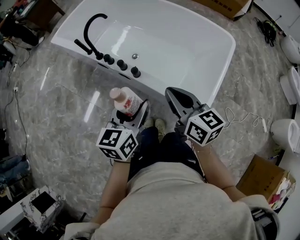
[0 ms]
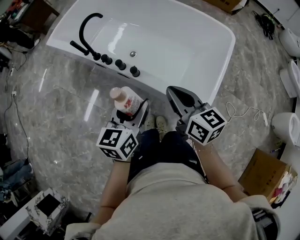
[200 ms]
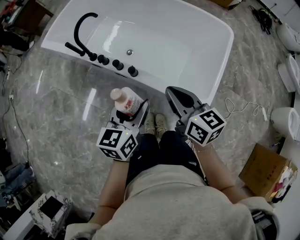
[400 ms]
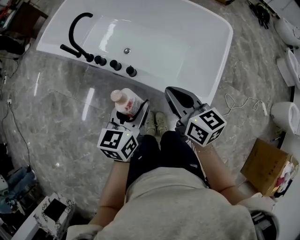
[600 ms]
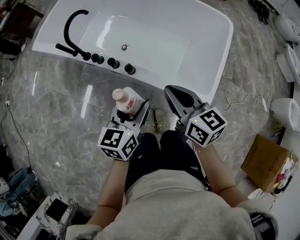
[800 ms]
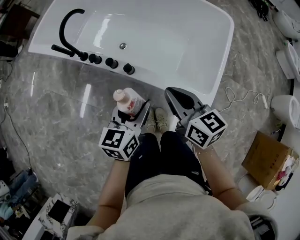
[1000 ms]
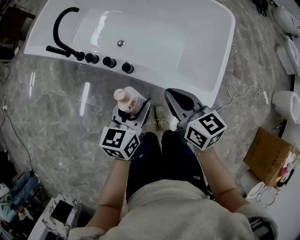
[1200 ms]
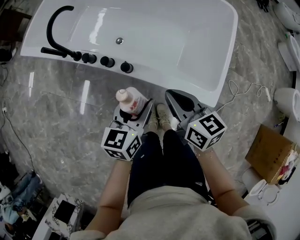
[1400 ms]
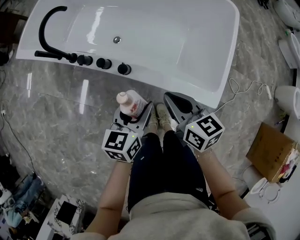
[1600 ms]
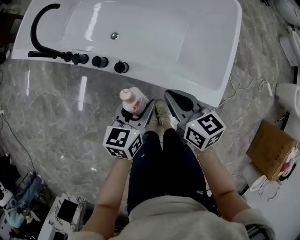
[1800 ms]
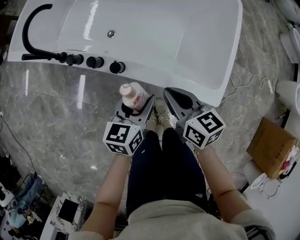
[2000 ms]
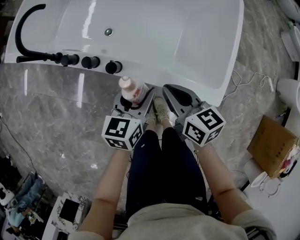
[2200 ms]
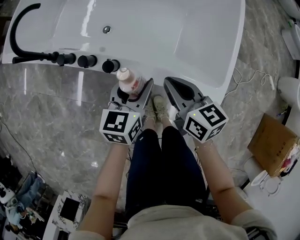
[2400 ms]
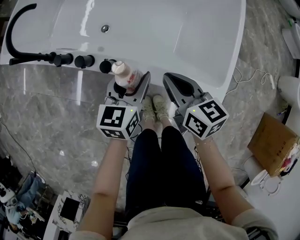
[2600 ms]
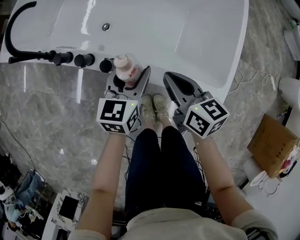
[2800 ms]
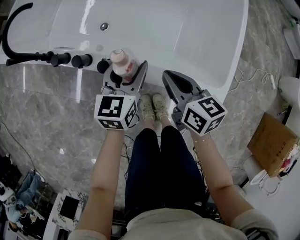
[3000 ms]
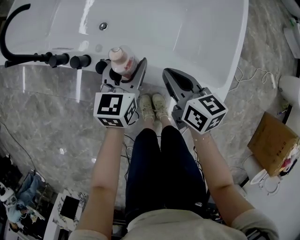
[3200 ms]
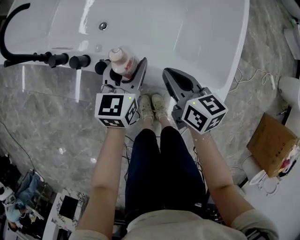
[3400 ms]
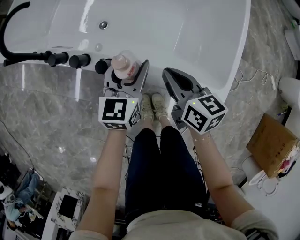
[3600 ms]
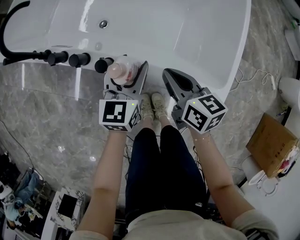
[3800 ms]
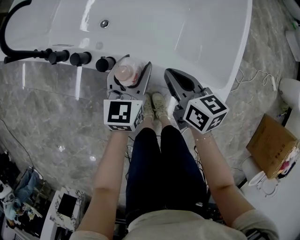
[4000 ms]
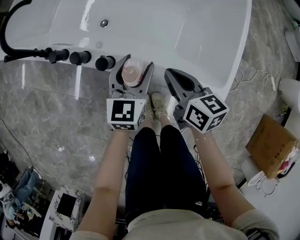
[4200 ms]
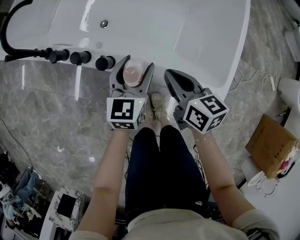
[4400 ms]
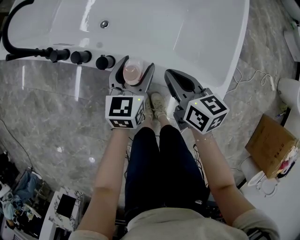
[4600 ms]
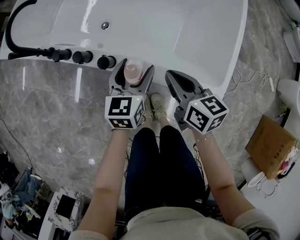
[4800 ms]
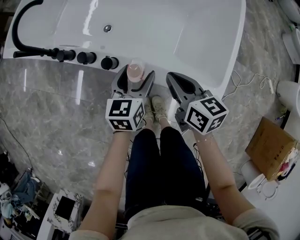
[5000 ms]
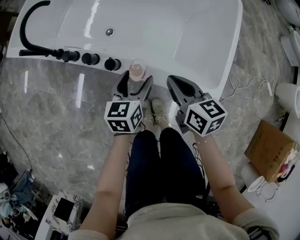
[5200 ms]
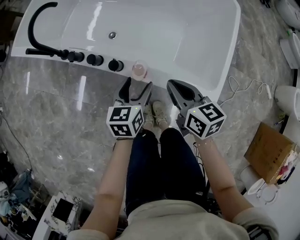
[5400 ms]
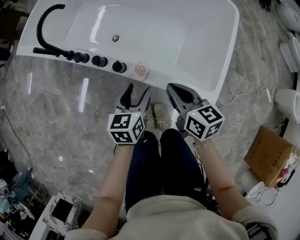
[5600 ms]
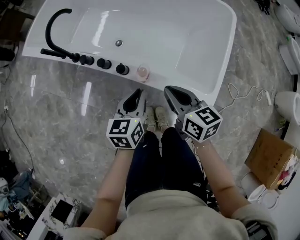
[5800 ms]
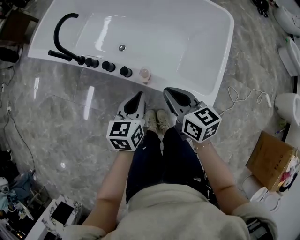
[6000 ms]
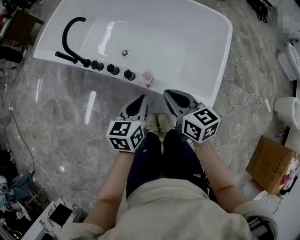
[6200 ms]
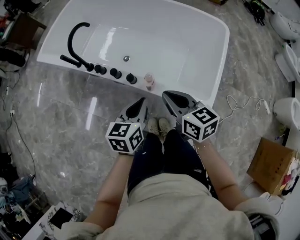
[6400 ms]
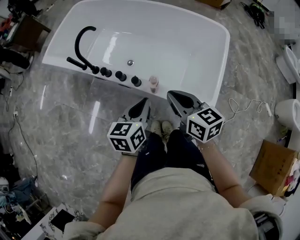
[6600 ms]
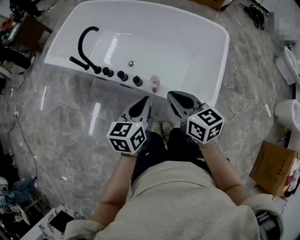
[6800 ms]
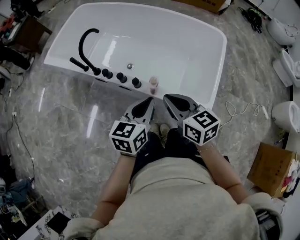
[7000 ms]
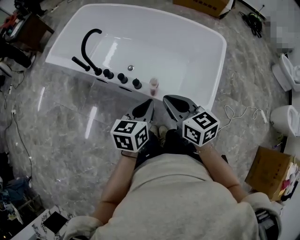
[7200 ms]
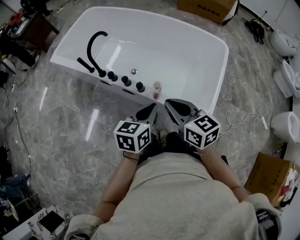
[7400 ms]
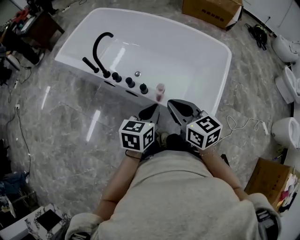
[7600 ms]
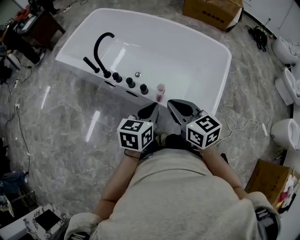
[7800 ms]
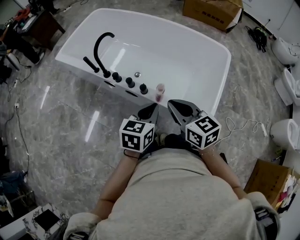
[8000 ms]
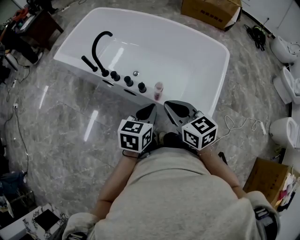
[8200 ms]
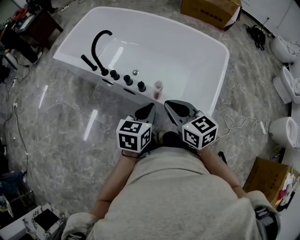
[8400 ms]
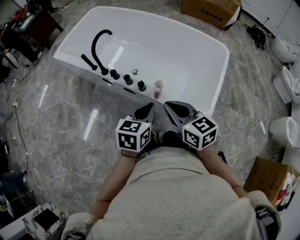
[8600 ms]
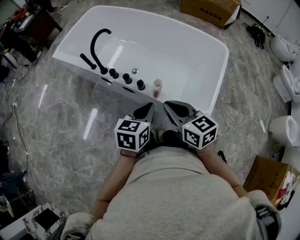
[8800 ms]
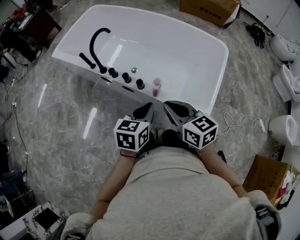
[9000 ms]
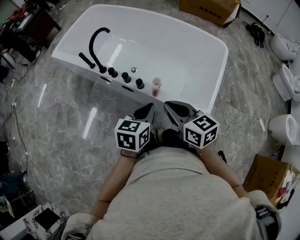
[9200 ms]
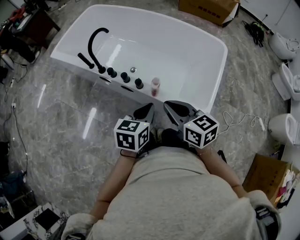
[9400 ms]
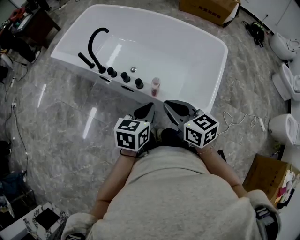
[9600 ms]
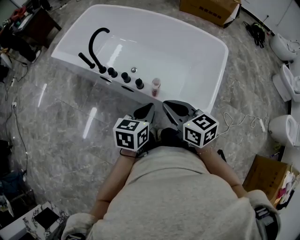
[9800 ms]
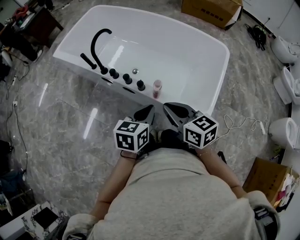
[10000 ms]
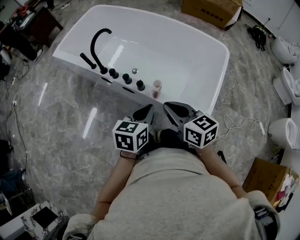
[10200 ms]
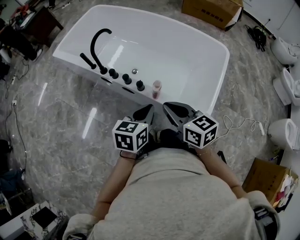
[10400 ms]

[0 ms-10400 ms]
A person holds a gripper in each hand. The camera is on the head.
0 ms to 1400 ms: The left gripper moves downward and forward, about 15 cm. The right gripper moves downward, roughly 15 cm.
1400 ms to 3000 ms: The grippers both shift downward and forward by approximately 15 cm.
3000 ms to 4400 ms: The grippers make only small movements.
4400 ms to 6000 ms: The right gripper is displaced upward by approximately 15 cm. Meanwhile the left gripper goes about 20 cm upward and backward, and closes up.
6000 ms to 7400 ms: The grippers both shift upward by about 10 cm.
7400 ms to 9000 ms: The grippers move only a little.
9000 ms to 10400 ms: The two grippers keep their place.

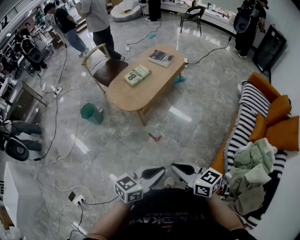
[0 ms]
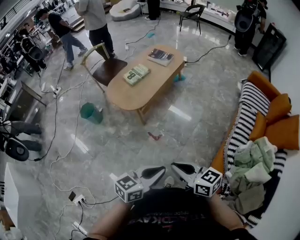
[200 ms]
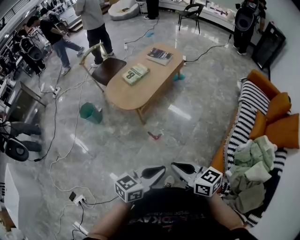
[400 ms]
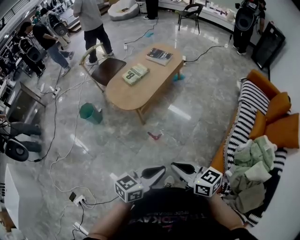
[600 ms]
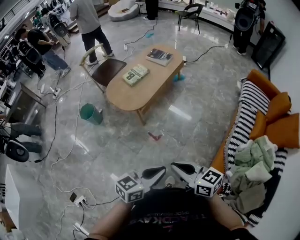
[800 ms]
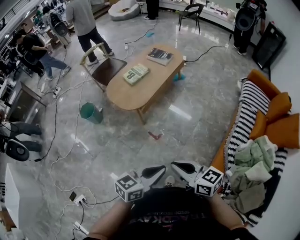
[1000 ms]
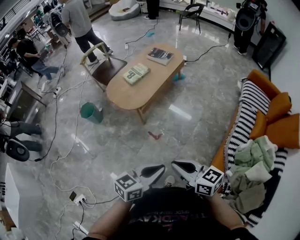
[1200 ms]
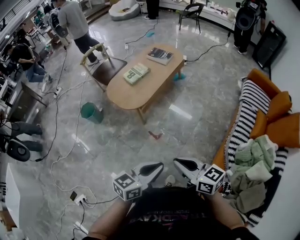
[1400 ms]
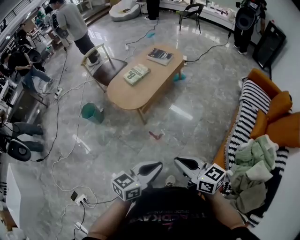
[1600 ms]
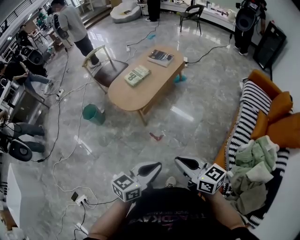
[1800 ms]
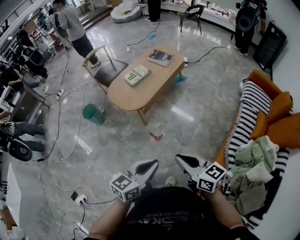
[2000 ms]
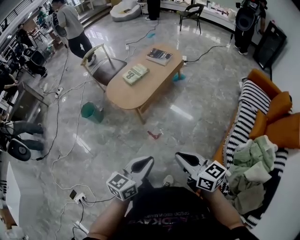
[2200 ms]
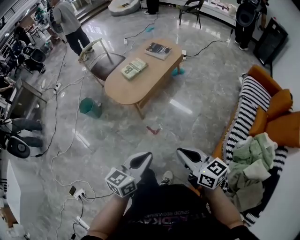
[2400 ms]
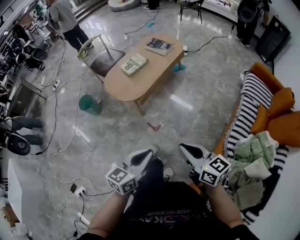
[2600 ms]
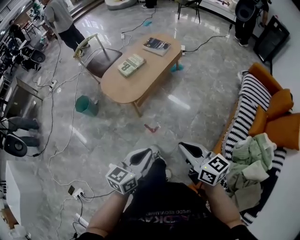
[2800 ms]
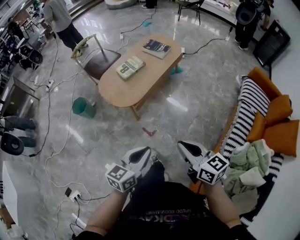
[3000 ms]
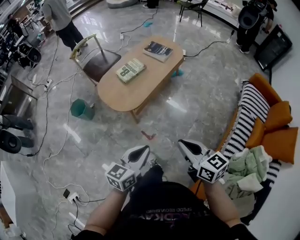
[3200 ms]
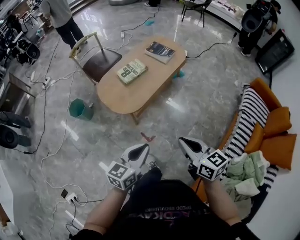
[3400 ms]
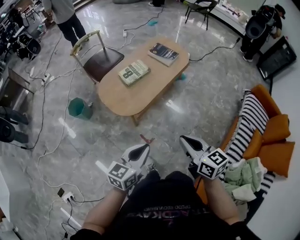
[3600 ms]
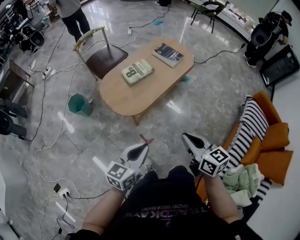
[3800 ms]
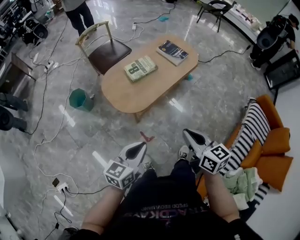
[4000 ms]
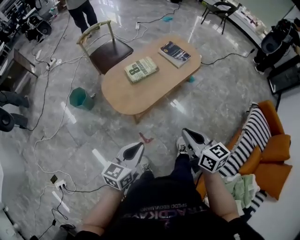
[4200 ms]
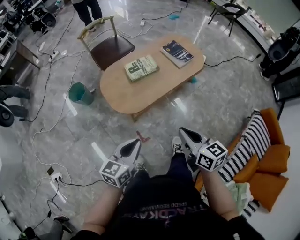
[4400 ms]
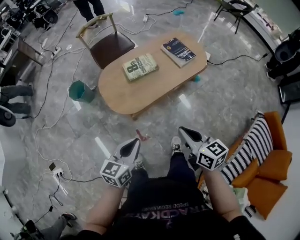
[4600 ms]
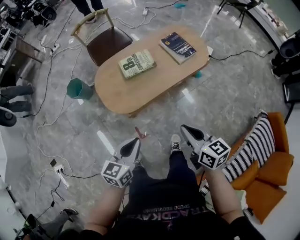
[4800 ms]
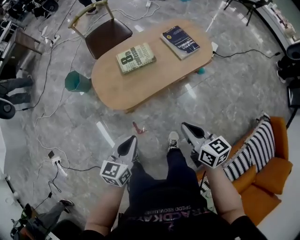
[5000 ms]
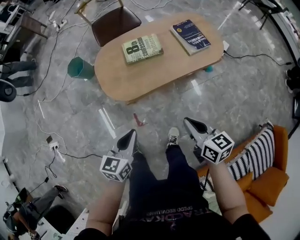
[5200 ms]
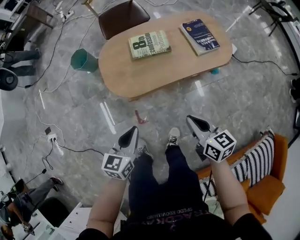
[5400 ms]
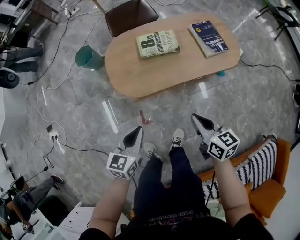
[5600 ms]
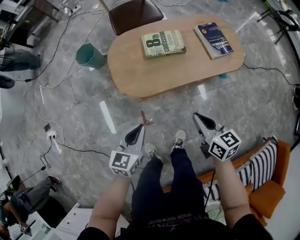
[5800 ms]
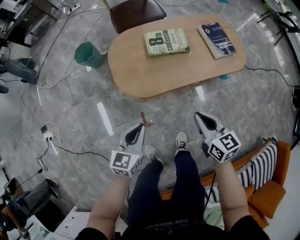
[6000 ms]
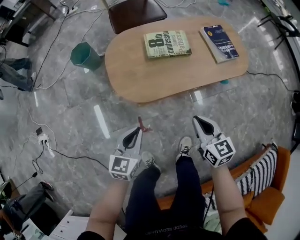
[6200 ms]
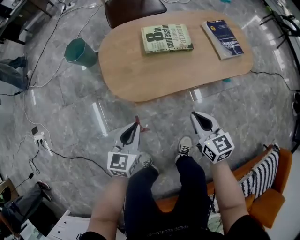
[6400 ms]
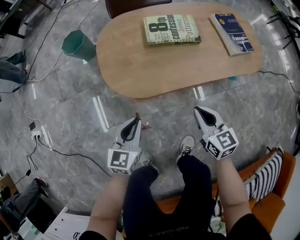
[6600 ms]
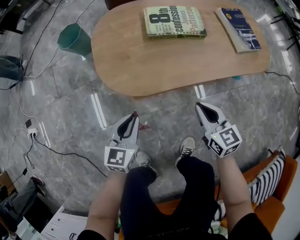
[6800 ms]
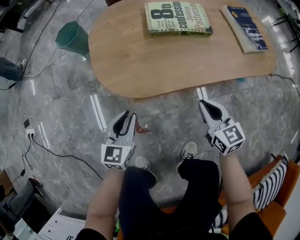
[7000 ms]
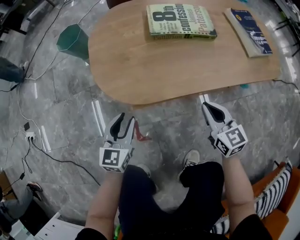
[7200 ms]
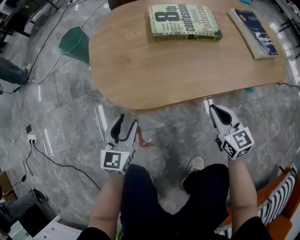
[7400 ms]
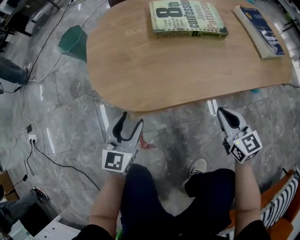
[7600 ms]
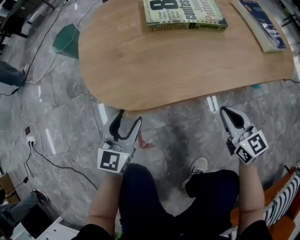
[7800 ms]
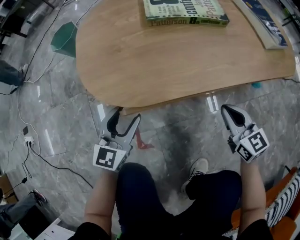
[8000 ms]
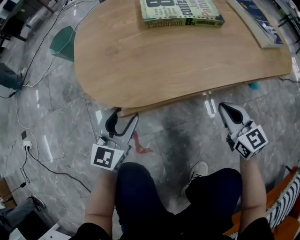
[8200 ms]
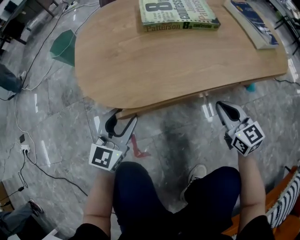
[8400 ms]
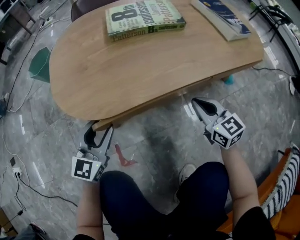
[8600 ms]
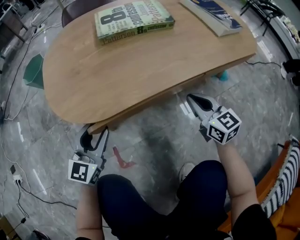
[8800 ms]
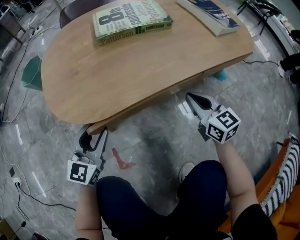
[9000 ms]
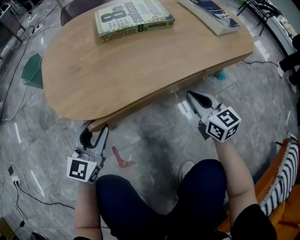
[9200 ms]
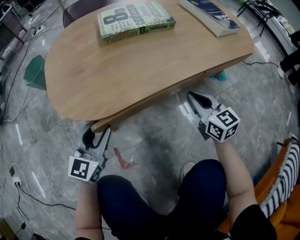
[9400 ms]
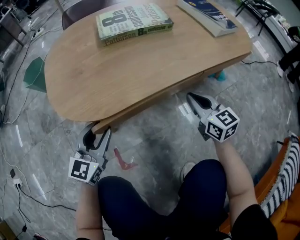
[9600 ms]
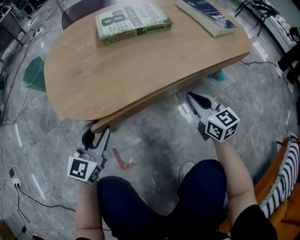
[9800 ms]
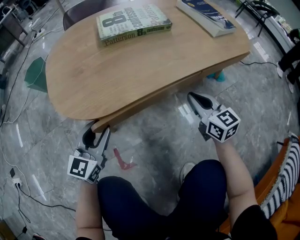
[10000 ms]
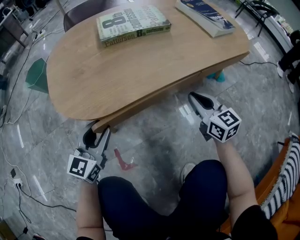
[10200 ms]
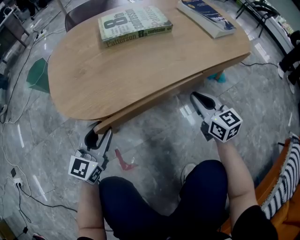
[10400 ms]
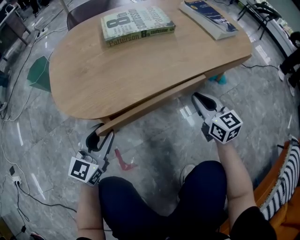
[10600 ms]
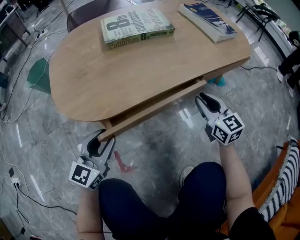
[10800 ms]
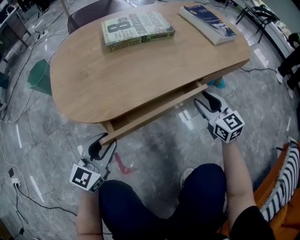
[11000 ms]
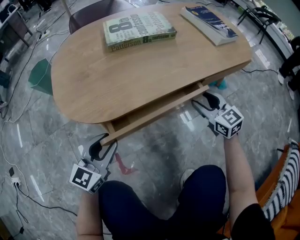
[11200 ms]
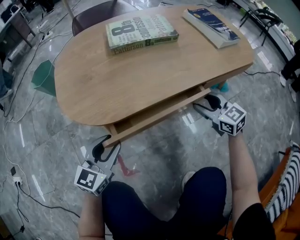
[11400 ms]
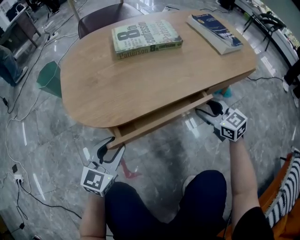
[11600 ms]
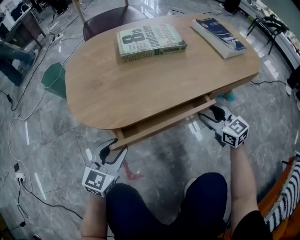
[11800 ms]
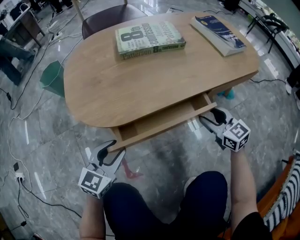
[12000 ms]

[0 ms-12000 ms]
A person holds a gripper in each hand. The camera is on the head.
0 ms to 1600 ms: The grippers move only a little.
1600 ms to 3000 ms: The grippers both shift forward by approximately 15 cm.
3000 ms to 4400 ms: Both grippers travel together forward, roughly 25 cm. The left gripper swivels about 20 degrees.
4400 ms to 6000 ms: The grippers both shift downward and forward by about 25 cm. The left gripper turns by roughly 20 degrees.
6000 ms to 7600 ms: The grippers both shift downward by about 35 cm. The left gripper opens.
7600 ms to 10400 ms: The grippers stay close to where they were, moving slightly.
10400 ms to 12000 ms: The right gripper opens its fingers.

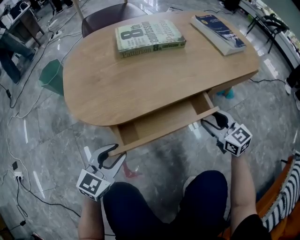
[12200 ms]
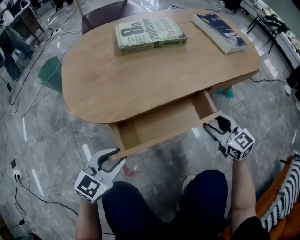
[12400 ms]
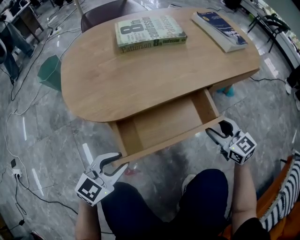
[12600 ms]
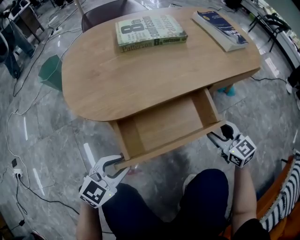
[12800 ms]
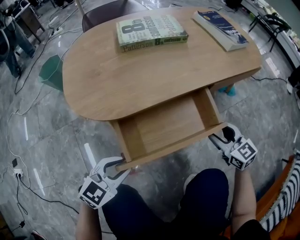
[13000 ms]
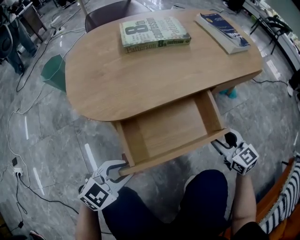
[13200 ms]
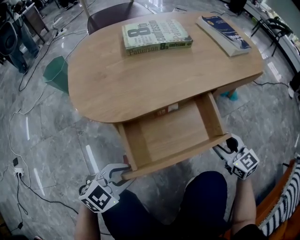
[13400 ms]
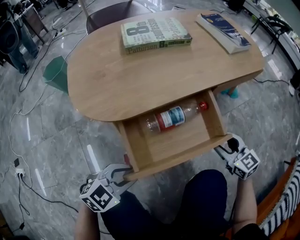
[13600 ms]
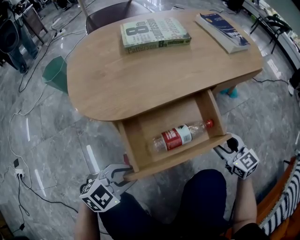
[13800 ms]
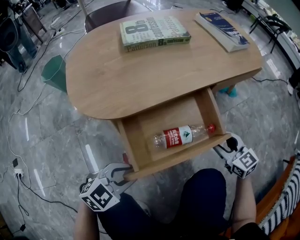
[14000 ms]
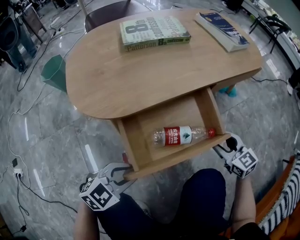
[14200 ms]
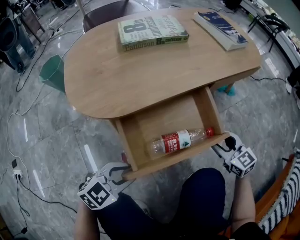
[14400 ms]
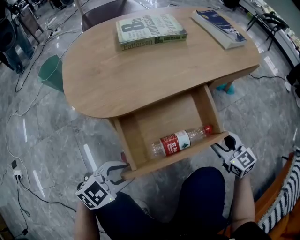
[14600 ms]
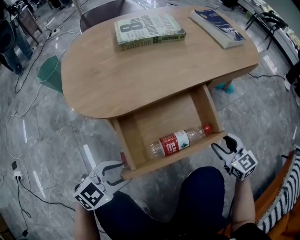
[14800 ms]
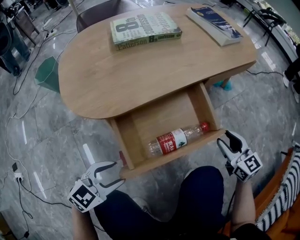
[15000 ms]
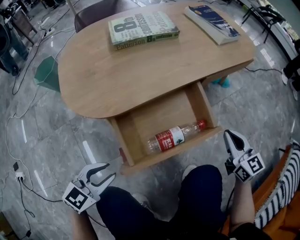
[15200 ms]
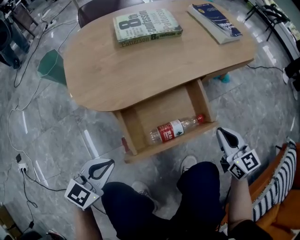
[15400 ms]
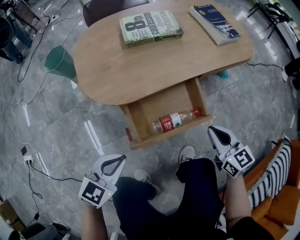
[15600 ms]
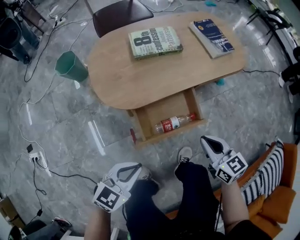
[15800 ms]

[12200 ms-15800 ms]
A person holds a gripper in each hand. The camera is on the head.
12200 ms to 14000 ms: The grippers both shift backward by about 10 cm. The left gripper swivels some 30 degrees.
14000 ms to 15800 ms: The two grippers go about 30 cm upward. The left gripper closes. Meanwhile the right gripper closes its fingers.
